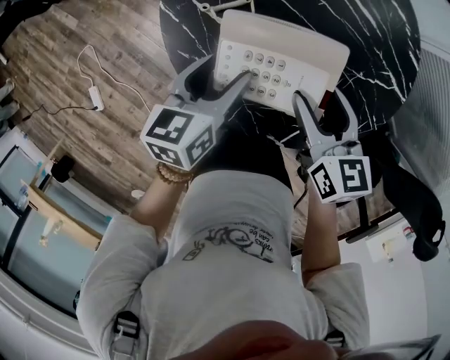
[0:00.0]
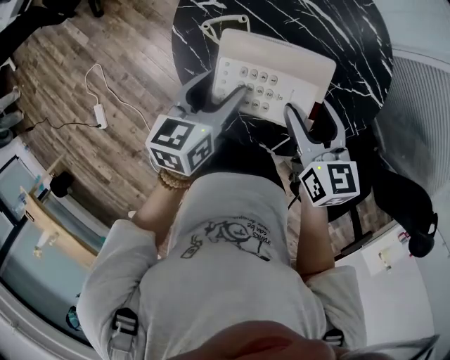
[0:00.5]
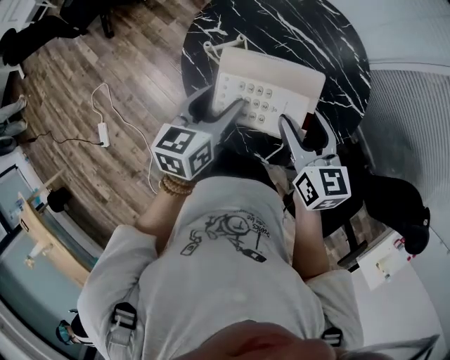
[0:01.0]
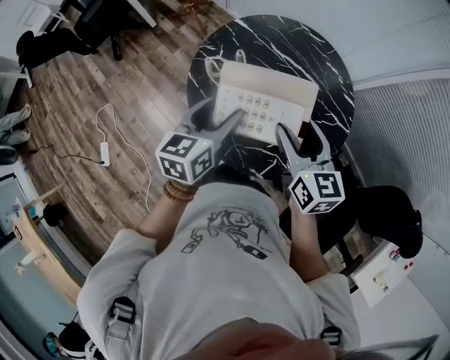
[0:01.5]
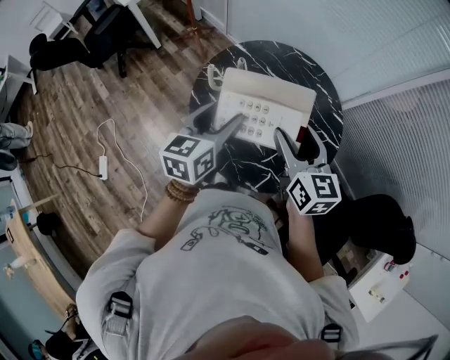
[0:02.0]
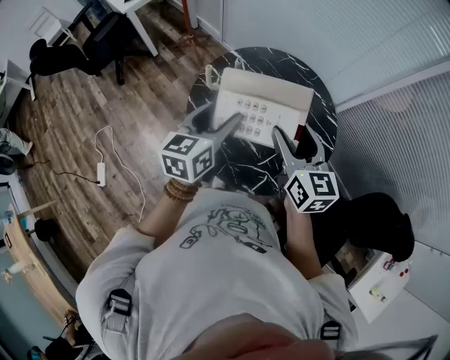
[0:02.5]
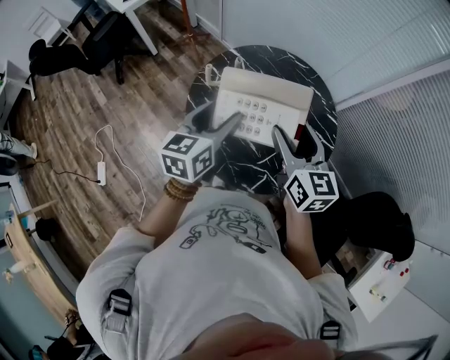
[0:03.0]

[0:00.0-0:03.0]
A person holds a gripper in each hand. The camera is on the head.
0:00.0 to 0:01.5: The grippers both shift upward by approximately 25 cm.
0:01.5 to 0:03.0: The two grippers go about 10 cm upward.

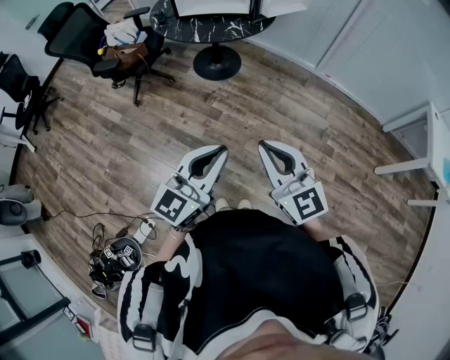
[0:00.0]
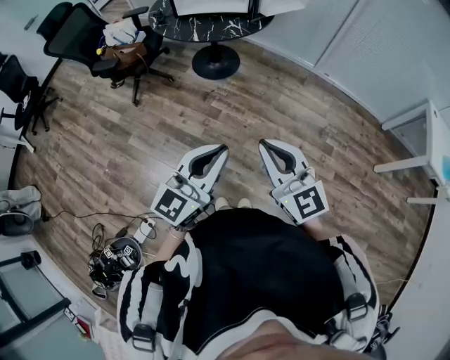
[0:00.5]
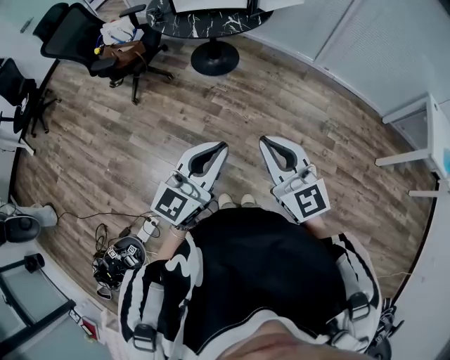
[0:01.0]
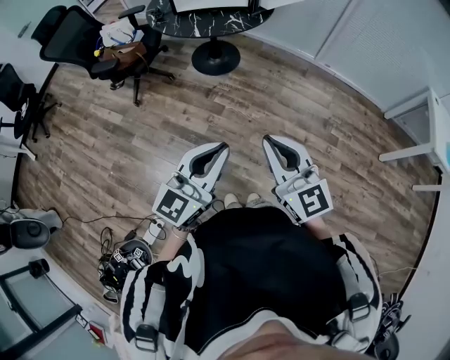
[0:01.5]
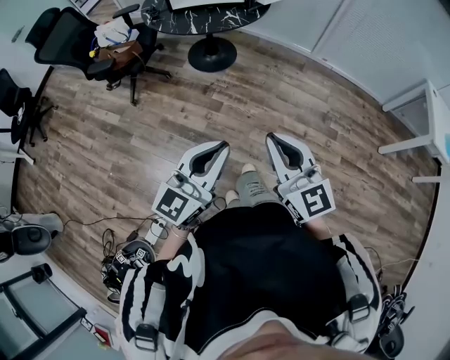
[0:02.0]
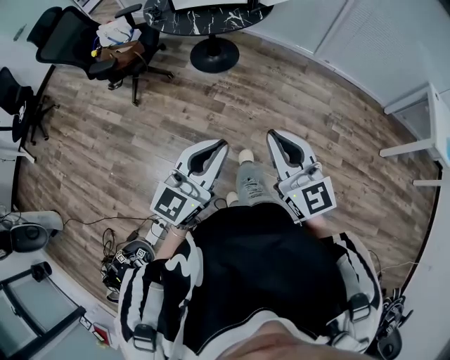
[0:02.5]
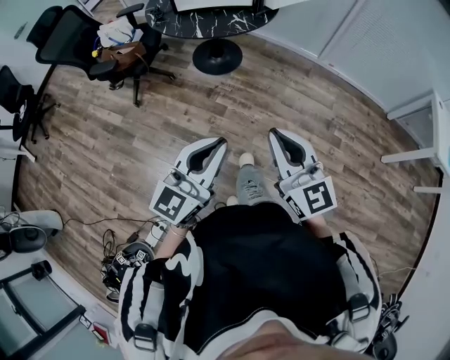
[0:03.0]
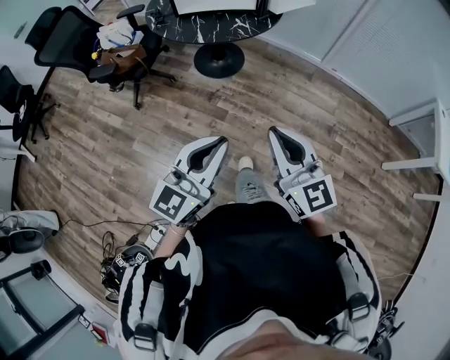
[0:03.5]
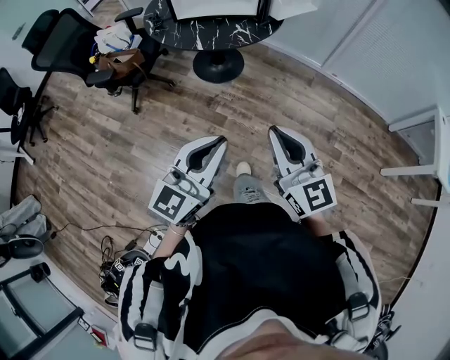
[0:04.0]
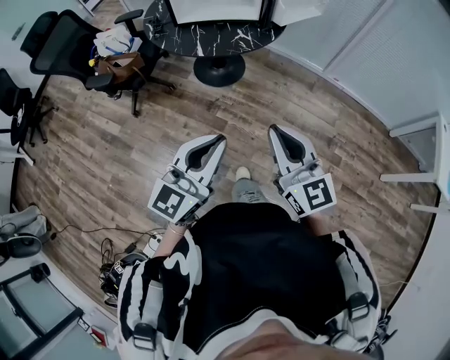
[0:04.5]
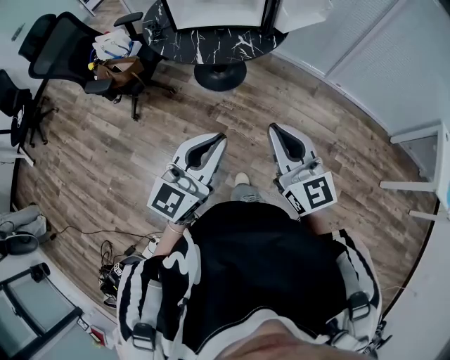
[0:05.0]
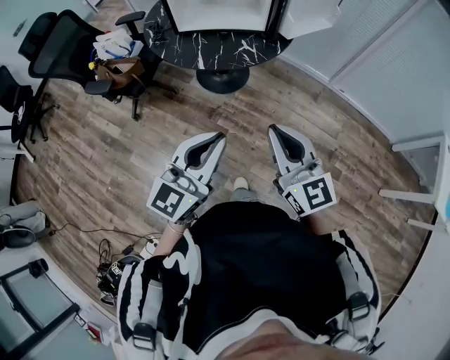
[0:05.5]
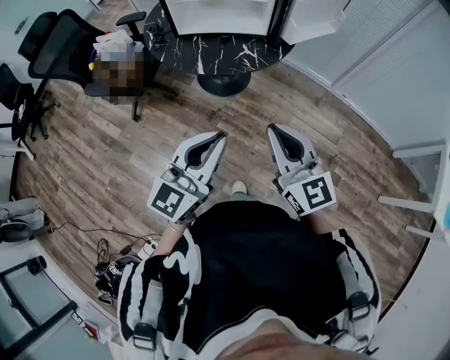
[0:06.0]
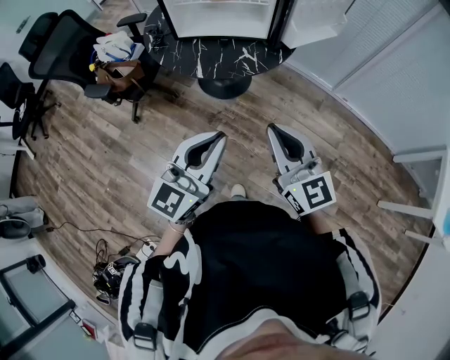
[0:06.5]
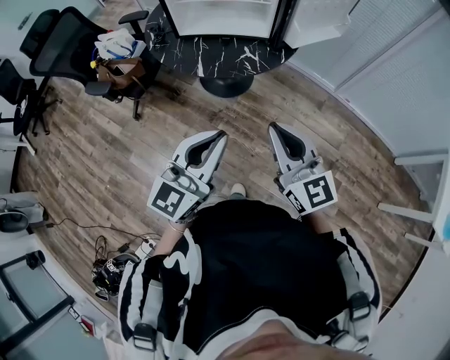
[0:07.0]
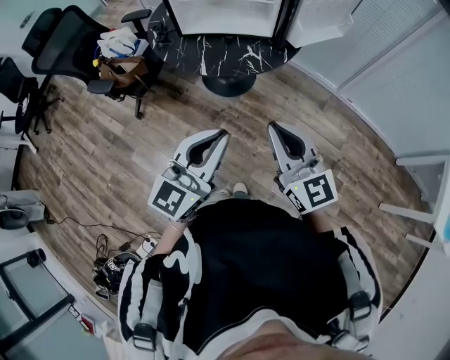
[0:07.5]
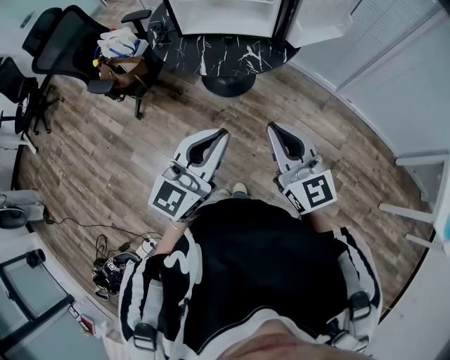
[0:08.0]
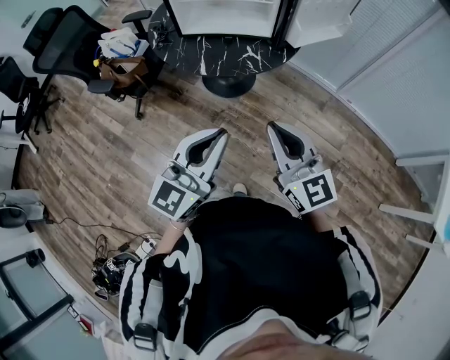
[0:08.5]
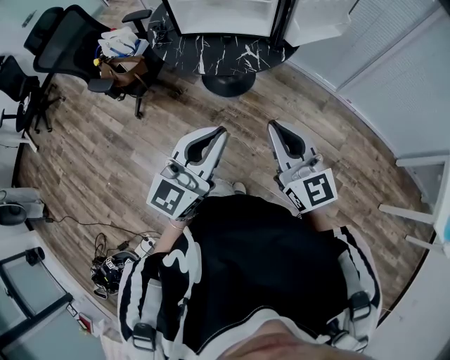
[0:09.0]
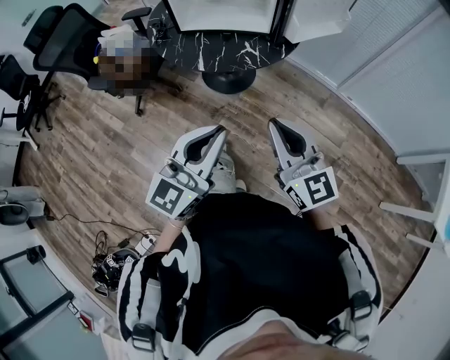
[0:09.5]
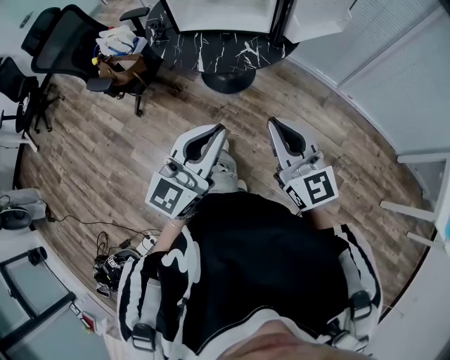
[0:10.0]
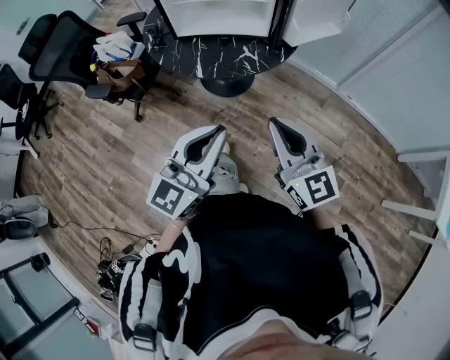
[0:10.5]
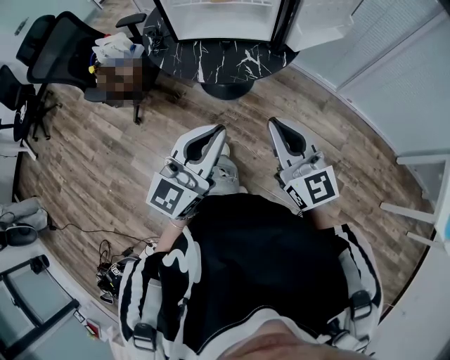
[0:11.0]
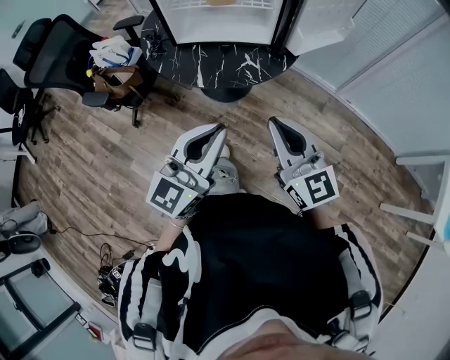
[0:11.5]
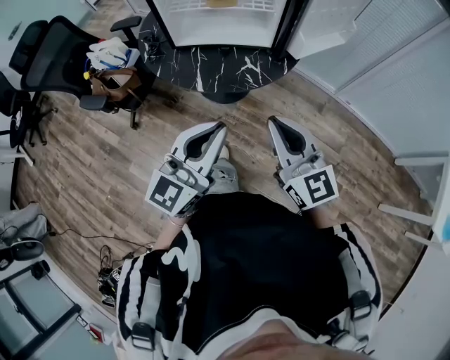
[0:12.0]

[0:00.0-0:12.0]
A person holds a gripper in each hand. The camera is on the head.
0:00.0 to 0:02.0: The left gripper changes place by about 5 cm.
0:02.0 to 0:04.0: The two grippers go about 15 cm forward.
0:04.0 to 0:06.0: The grippers both shift forward by about 20 cm.
0:06.0 to 0:10.0: The grippers make only small movements.
0:10.0 to 0:12.0: Both grippers move forward, about 10 cm.

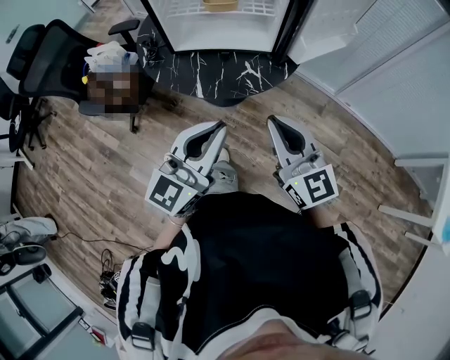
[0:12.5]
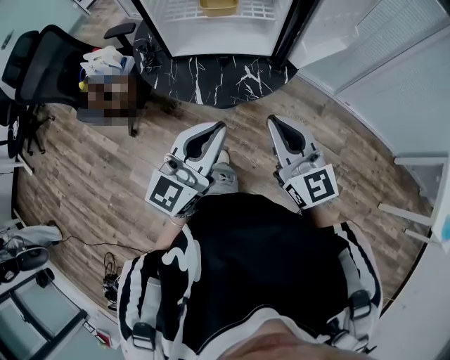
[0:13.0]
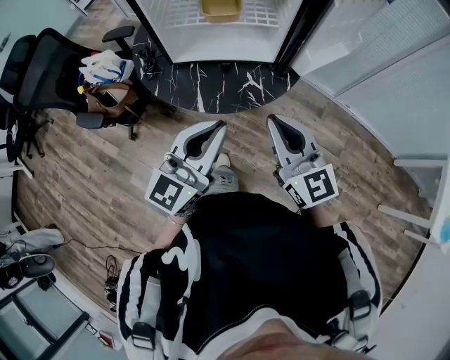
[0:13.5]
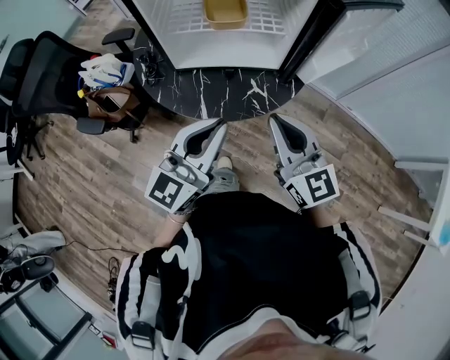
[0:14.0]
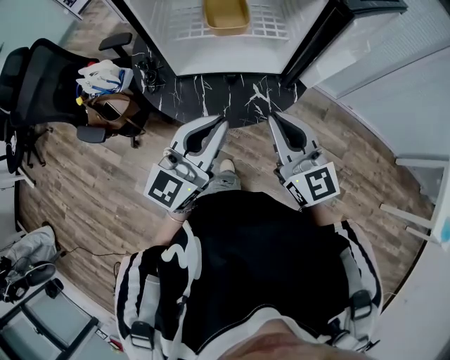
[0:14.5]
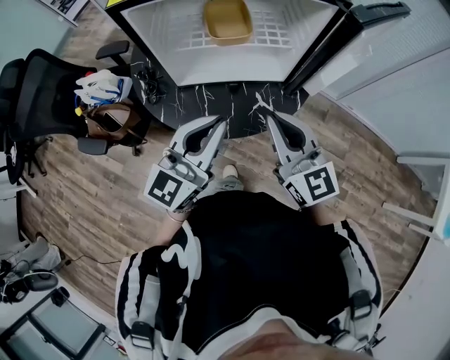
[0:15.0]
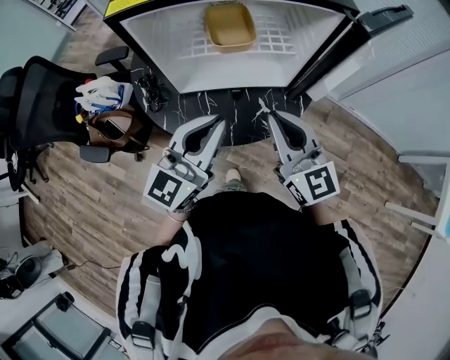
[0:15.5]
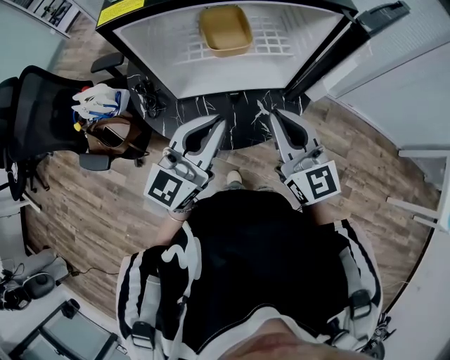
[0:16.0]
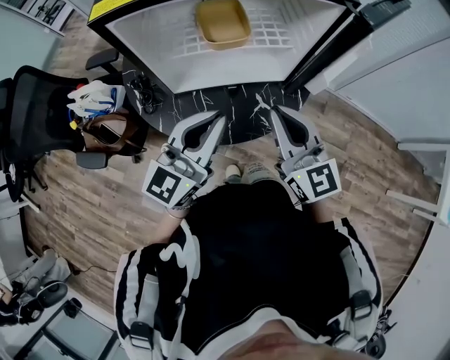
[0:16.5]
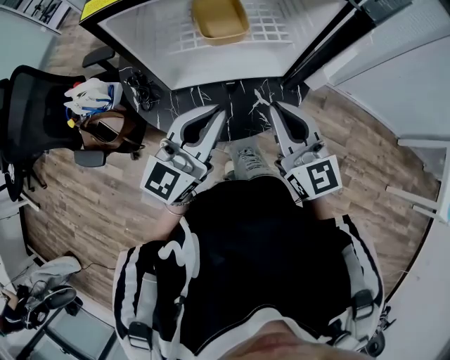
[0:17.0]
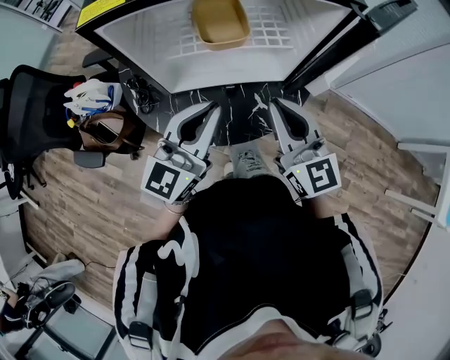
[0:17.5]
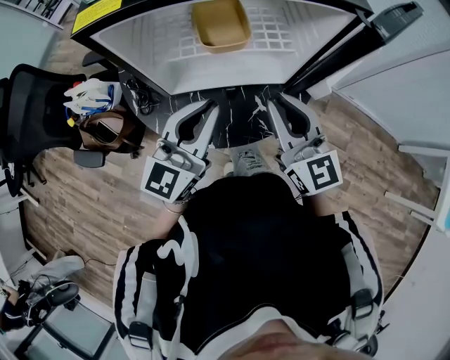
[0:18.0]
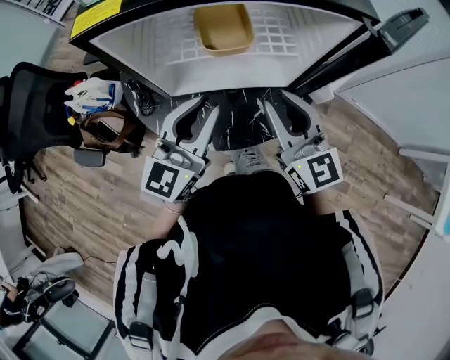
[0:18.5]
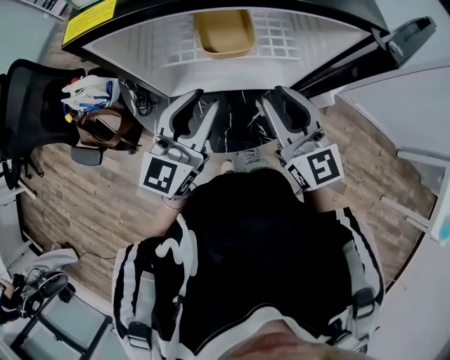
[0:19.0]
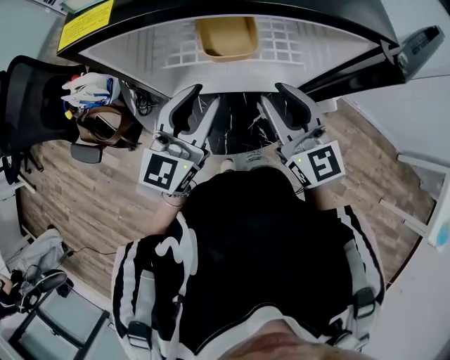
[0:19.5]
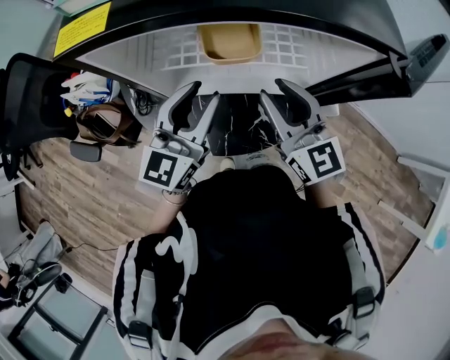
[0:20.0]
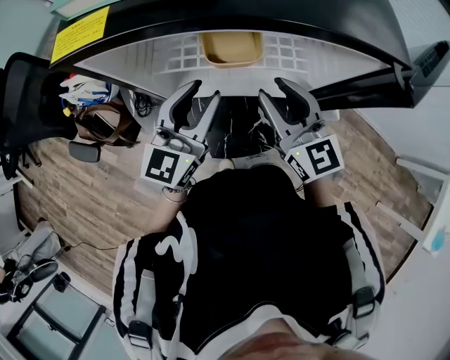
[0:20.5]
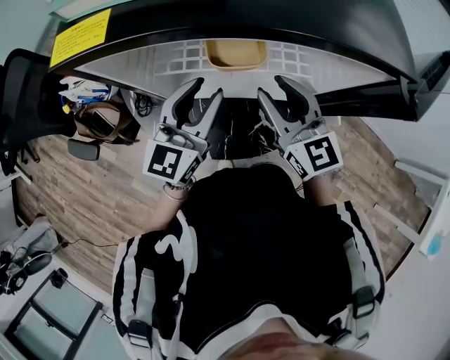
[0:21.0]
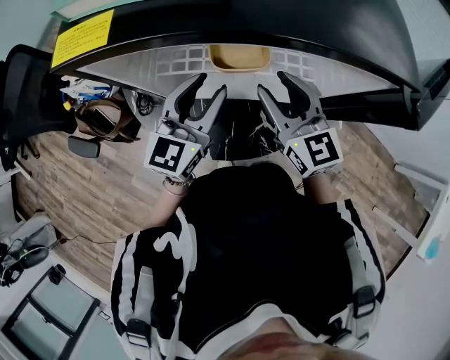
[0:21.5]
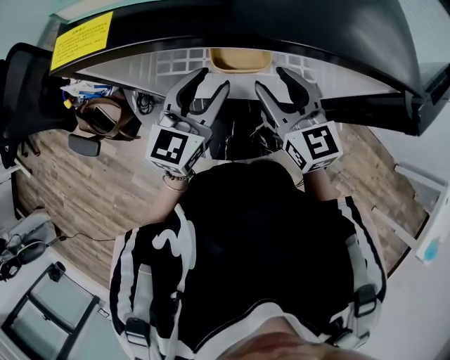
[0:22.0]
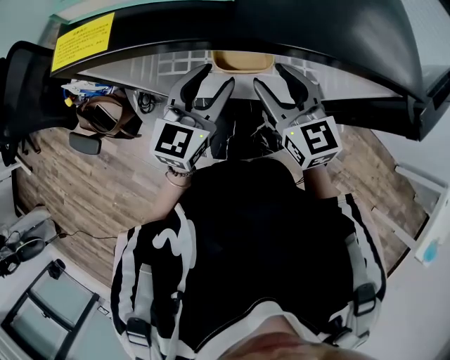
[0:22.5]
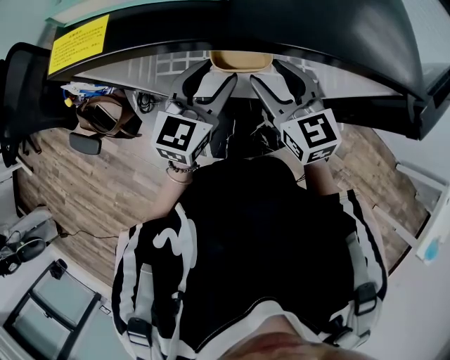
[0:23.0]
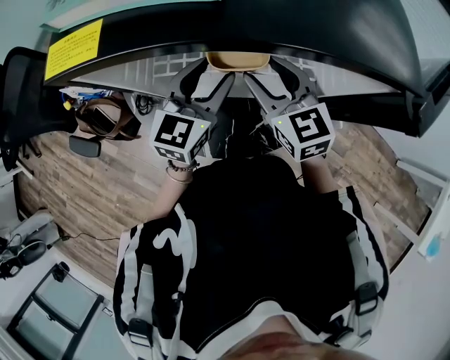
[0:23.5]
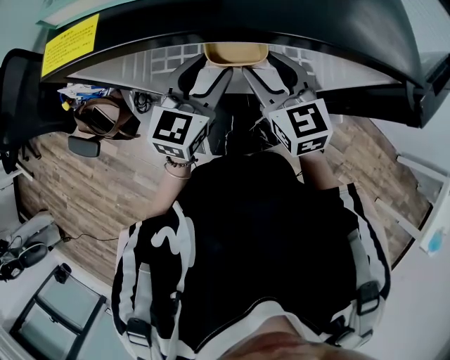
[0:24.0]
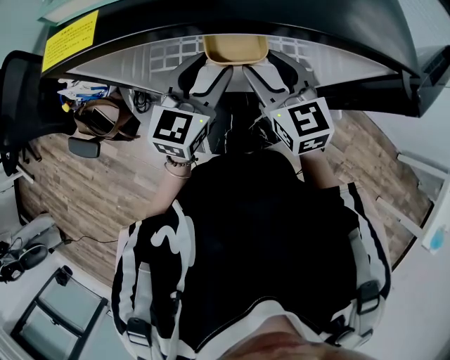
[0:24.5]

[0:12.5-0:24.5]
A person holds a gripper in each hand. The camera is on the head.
0:12.5 to 0:14.5: Both grippers move forward, approximately 15 cm.
0:14.5 to 0:16.5: Both grippers travel together forward, some 10 cm.
0:16.5 to 0:18.5: Both grippers move forward, some 5 cm.
0:18.5 to 0:20.5: Both grippers move forward, approximately 10 cm.
0:20.5 to 0:22.5: Both grippers move forward, some 5 cm.
0:22.5 to 0:24.5: There are only small adjustments of the grippers.
